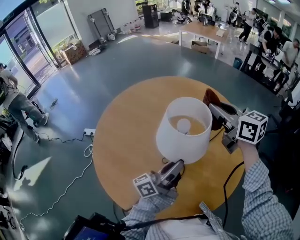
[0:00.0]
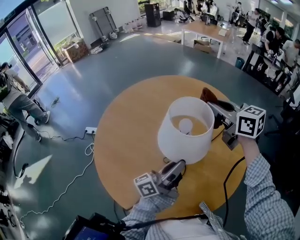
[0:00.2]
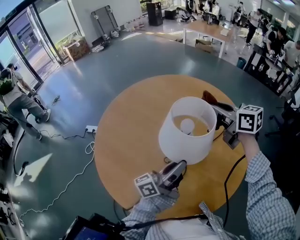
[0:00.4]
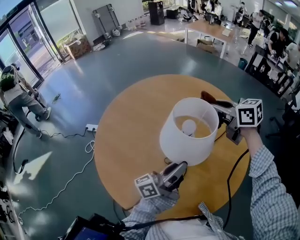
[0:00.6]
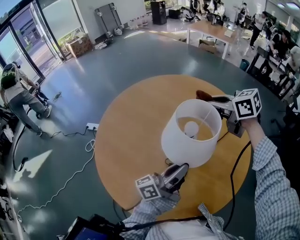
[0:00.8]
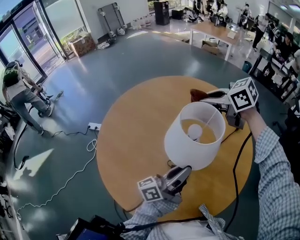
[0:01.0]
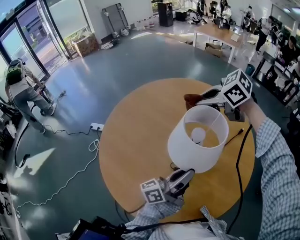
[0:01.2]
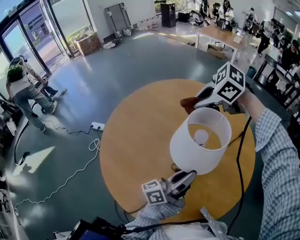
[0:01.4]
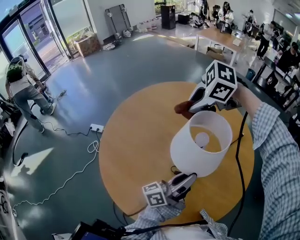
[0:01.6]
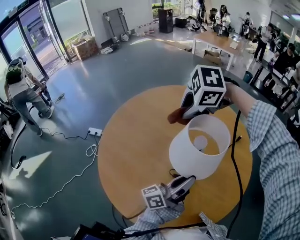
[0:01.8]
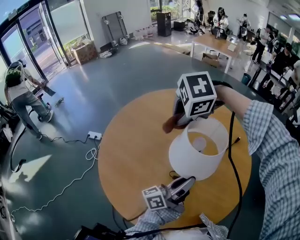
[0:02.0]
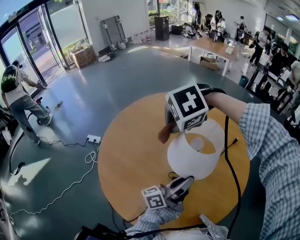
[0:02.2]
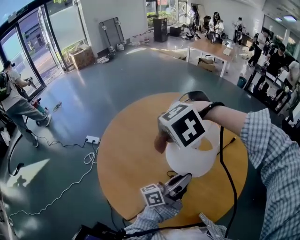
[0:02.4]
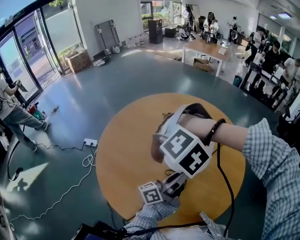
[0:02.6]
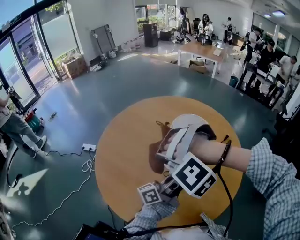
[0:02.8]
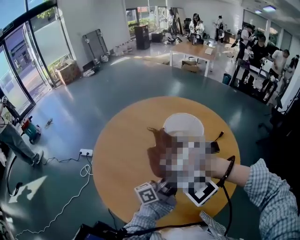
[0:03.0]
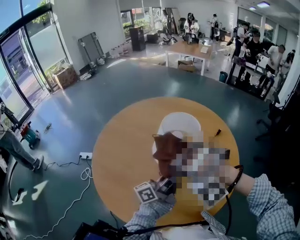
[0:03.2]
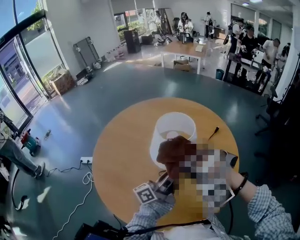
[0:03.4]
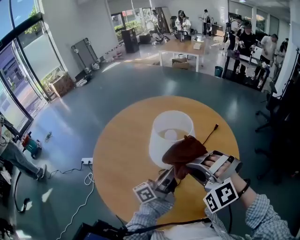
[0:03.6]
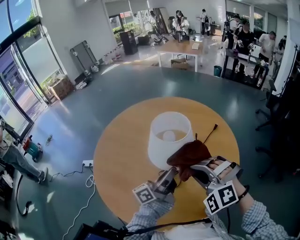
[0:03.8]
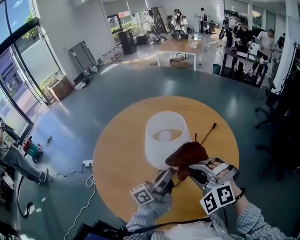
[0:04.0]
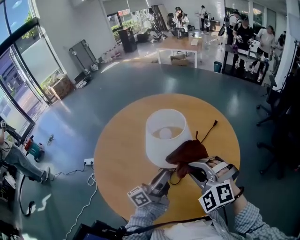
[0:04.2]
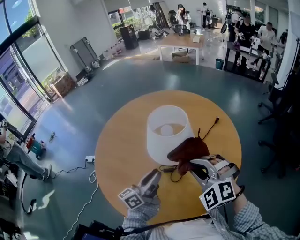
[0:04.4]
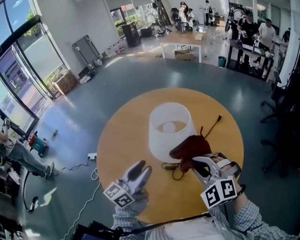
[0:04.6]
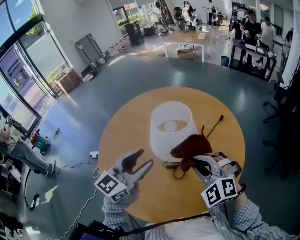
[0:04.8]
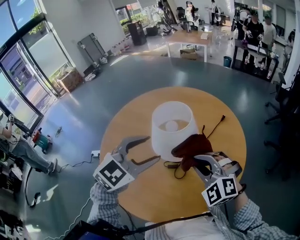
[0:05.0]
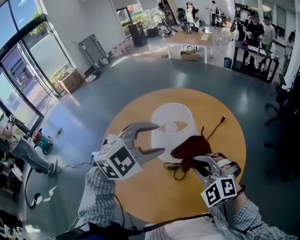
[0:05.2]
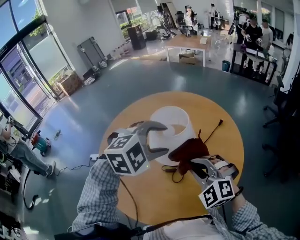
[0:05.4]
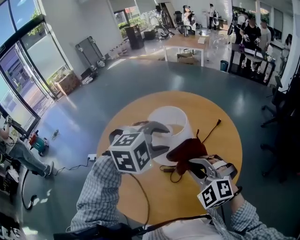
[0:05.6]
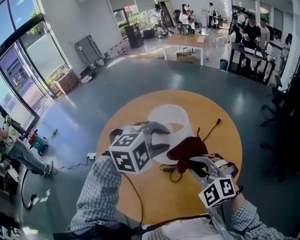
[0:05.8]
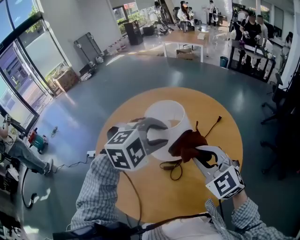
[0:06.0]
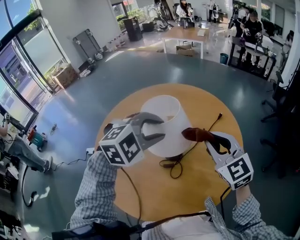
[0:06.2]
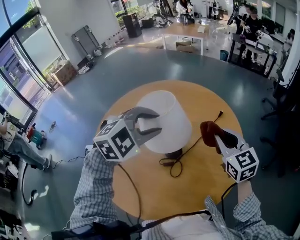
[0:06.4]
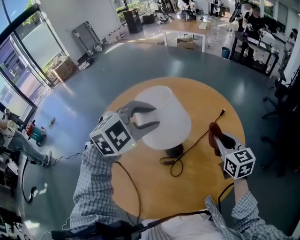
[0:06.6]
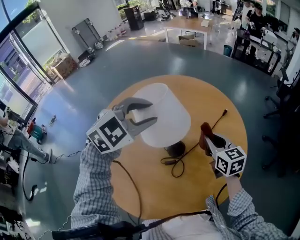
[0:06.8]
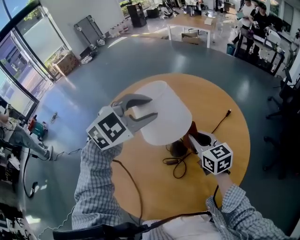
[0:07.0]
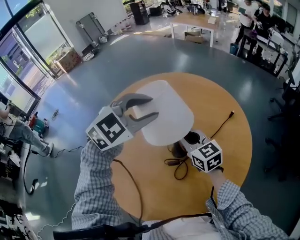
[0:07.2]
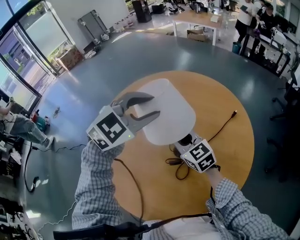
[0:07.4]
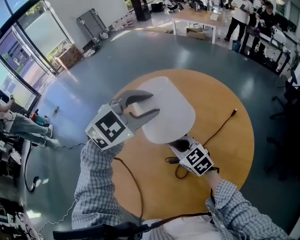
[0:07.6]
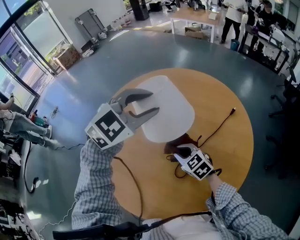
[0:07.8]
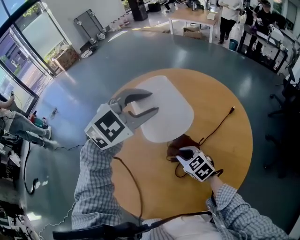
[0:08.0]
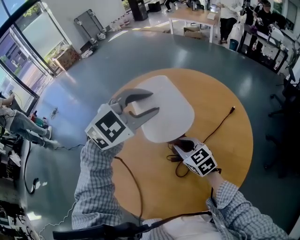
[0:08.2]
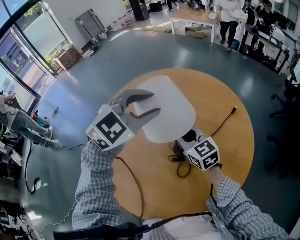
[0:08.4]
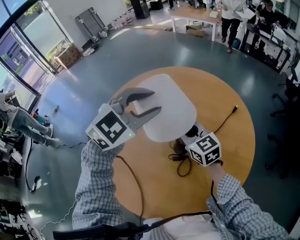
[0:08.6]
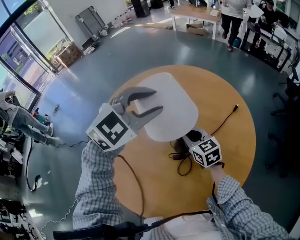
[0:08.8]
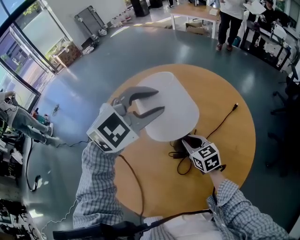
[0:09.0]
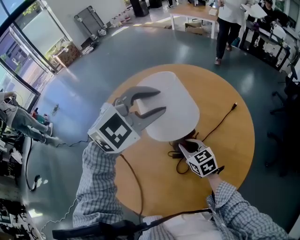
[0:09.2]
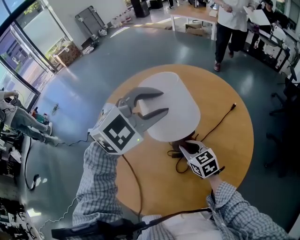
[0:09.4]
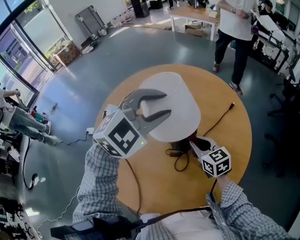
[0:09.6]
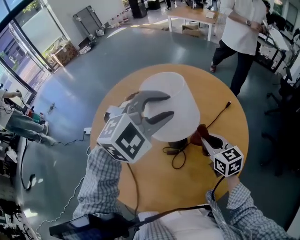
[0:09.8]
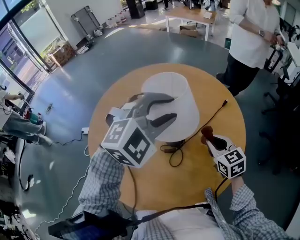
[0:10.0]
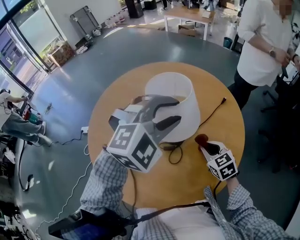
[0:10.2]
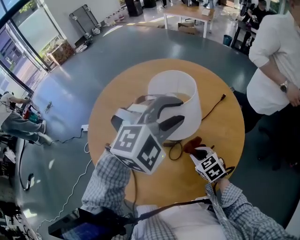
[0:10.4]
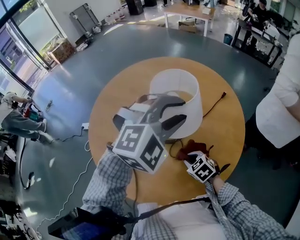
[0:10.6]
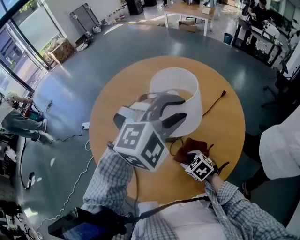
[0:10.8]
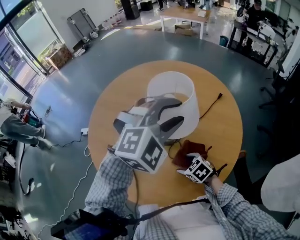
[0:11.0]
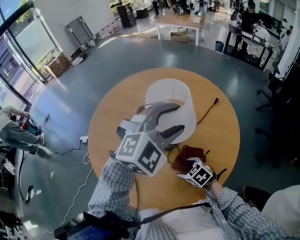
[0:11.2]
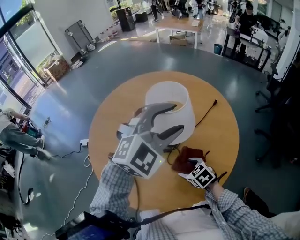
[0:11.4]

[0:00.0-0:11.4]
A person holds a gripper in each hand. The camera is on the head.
0:00.0 to 0:01.4: The right gripper changes place by roughly 15 cm, and angles its fingers downward, by about 40 degrees.
0:01.4 to 0:02.8: The right gripper moves approximately 20 cm, and rotates around the line of its fingers by roughly 80 degrees, counterclockwise from behind.
0:02.8 to 0:04.2: The right gripper moves to the right, some 15 cm, and rolls clockwise, seen from behind, by approximately 60 degrees.
0:04.2 to 0:05.6: The left gripper travels upward and forward by approximately 15 cm, tilts its fingers some 70 degrees downward, and opens up.
0:05.6 to 0:07.2: The right gripper goes some 15 cm forward, to the left and downward, and rolls clockwise, seen from behind, by some 60 degrees; the left gripper heads forward and to the left, covering about 10 cm, and changes its angle by about 30 degrees.
0:07.2 to 0:08.6: The right gripper moves roughly 10 cm downward and comes back.
0:08.6 to 0:10.0: The left gripper shifts some 10 cm to the right and backward. Meanwhile the right gripper moves to the right and backward, approximately 20 cm.
0:10.0 to 0:11.4: The right gripper is displaced downward, backward and to the left by about 20 cm, swivels some 30 degrees, and opens, while the left gripper is displaced backward by approximately 5 cm.

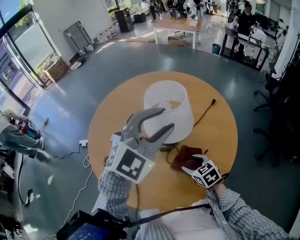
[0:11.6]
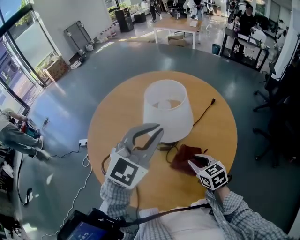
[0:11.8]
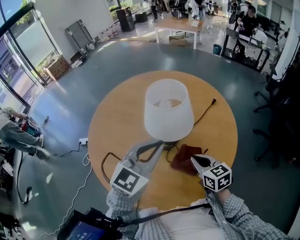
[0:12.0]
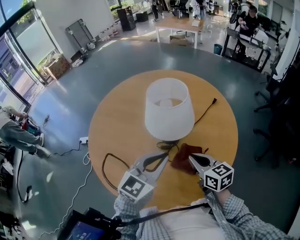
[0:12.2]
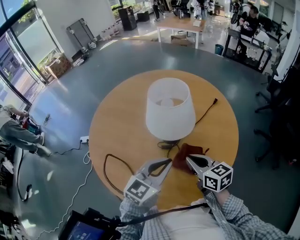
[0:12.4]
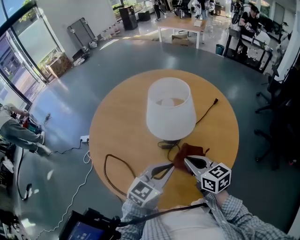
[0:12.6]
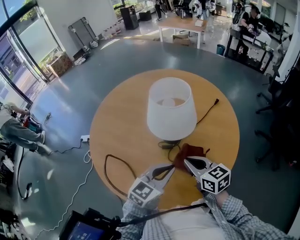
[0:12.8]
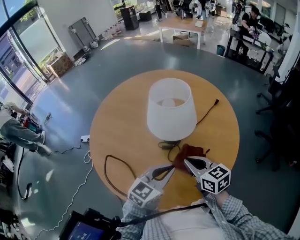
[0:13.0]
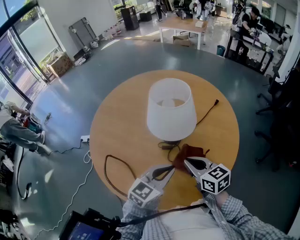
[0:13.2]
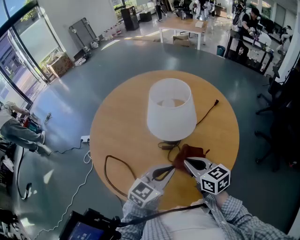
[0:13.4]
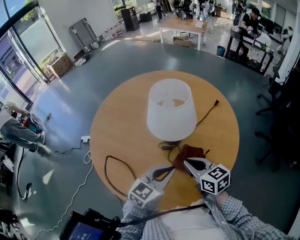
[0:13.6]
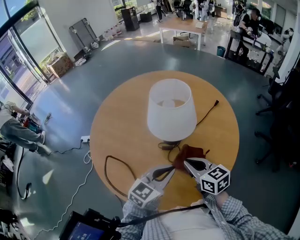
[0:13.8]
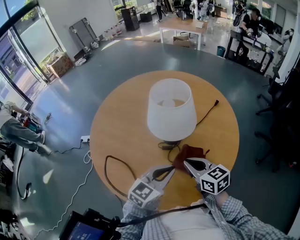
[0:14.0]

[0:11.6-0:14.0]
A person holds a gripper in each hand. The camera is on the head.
0:11.6 to 0:12.8: The left gripper shifts approximately 25 cm downward and backward, twists approximately 40 degrees counterclockwise, seen from behind, and closes up. The right gripper heads upward, covering about 10 cm, changes its angle by about 30 degrees, and closes its fingers.
0:12.8 to 0:14.0: Both grippers stay put.

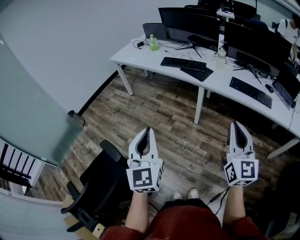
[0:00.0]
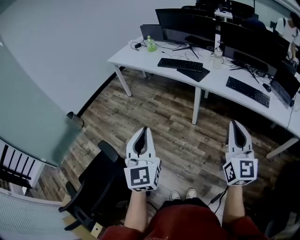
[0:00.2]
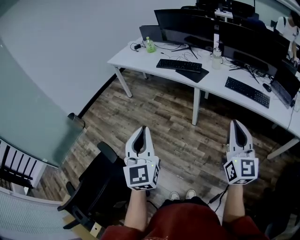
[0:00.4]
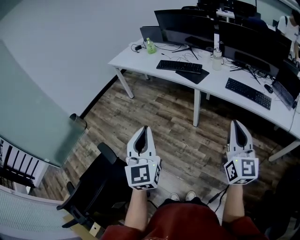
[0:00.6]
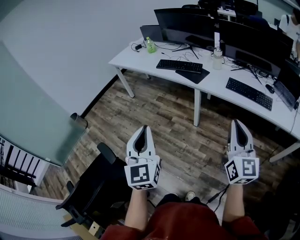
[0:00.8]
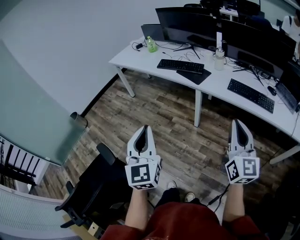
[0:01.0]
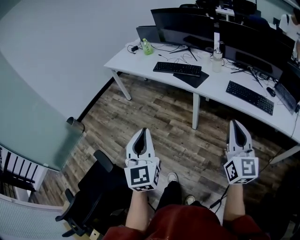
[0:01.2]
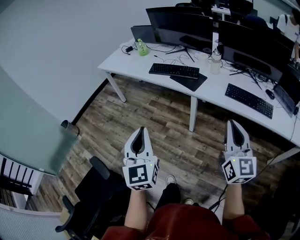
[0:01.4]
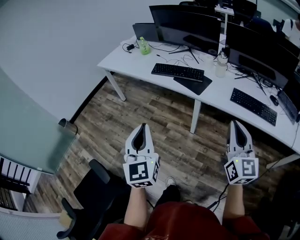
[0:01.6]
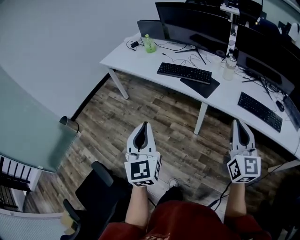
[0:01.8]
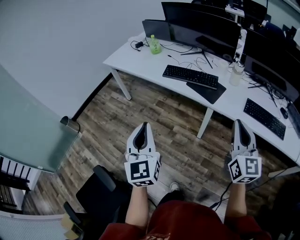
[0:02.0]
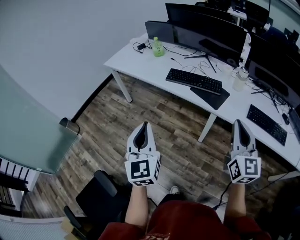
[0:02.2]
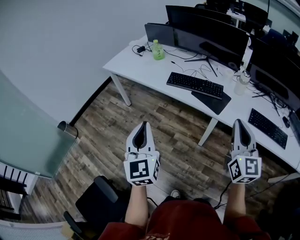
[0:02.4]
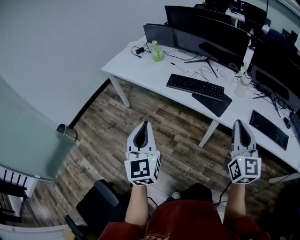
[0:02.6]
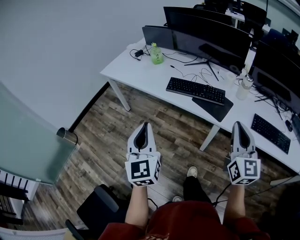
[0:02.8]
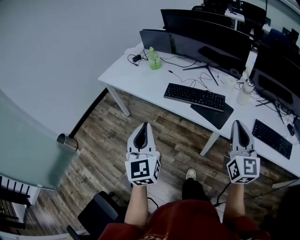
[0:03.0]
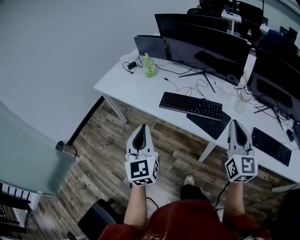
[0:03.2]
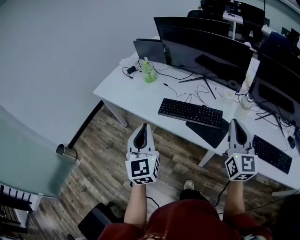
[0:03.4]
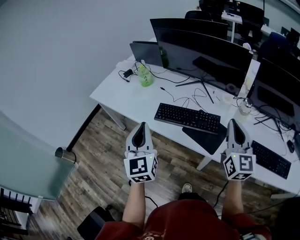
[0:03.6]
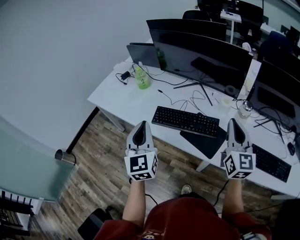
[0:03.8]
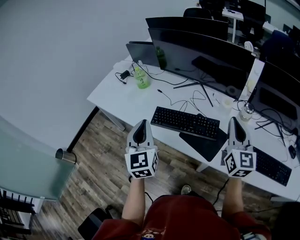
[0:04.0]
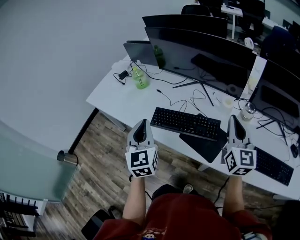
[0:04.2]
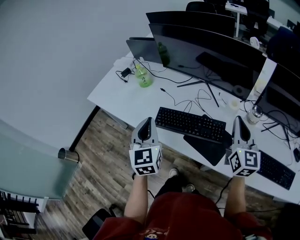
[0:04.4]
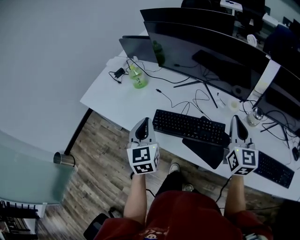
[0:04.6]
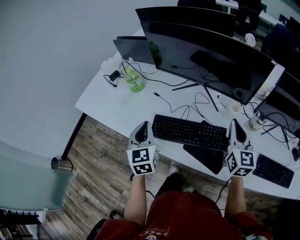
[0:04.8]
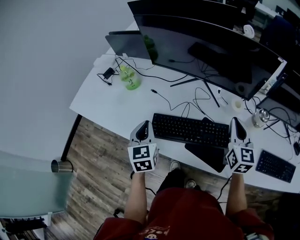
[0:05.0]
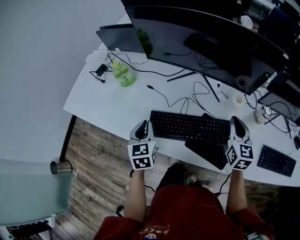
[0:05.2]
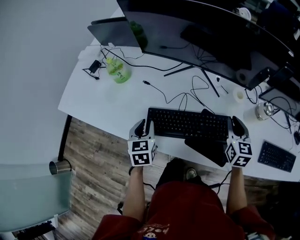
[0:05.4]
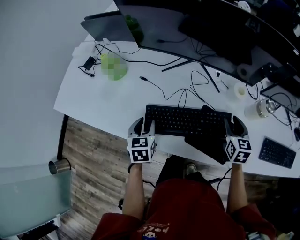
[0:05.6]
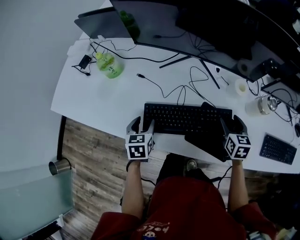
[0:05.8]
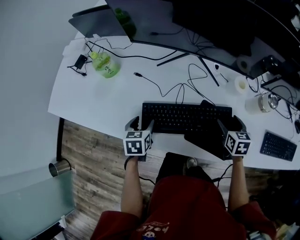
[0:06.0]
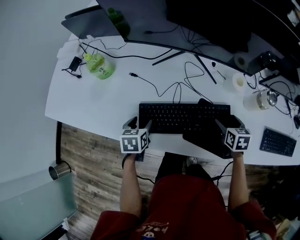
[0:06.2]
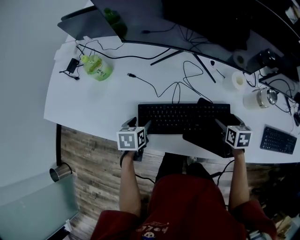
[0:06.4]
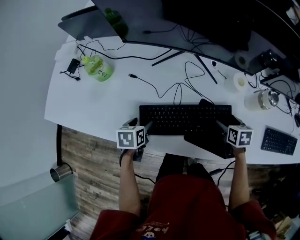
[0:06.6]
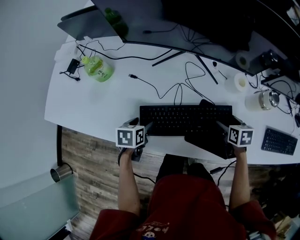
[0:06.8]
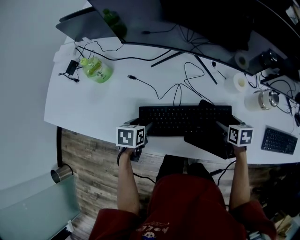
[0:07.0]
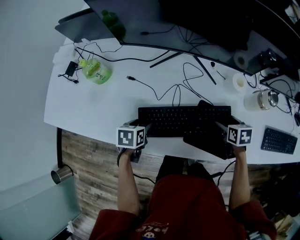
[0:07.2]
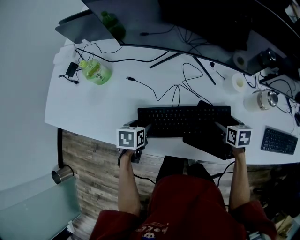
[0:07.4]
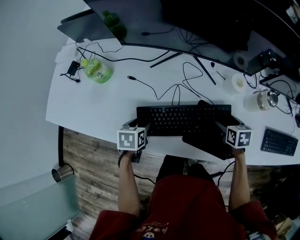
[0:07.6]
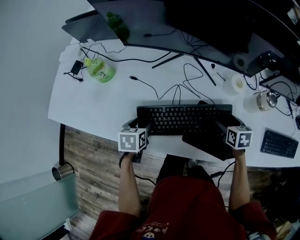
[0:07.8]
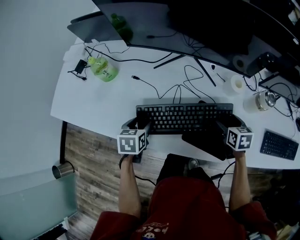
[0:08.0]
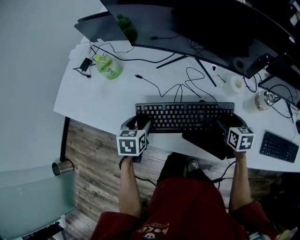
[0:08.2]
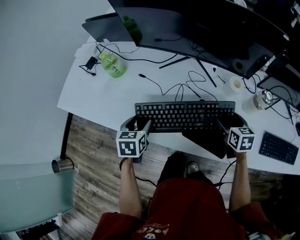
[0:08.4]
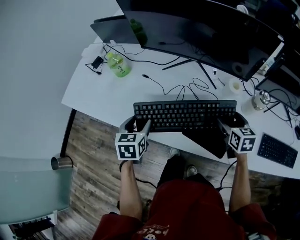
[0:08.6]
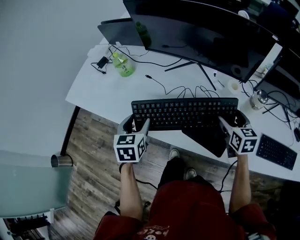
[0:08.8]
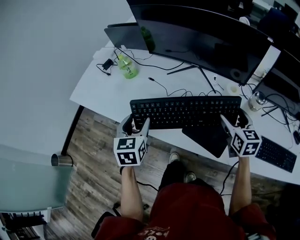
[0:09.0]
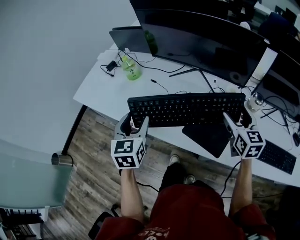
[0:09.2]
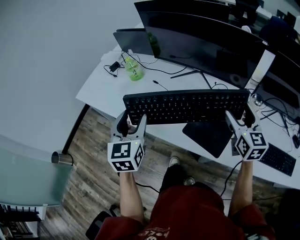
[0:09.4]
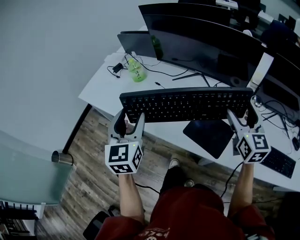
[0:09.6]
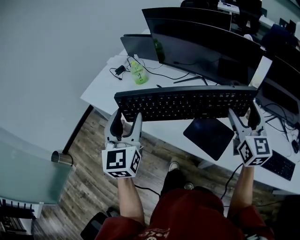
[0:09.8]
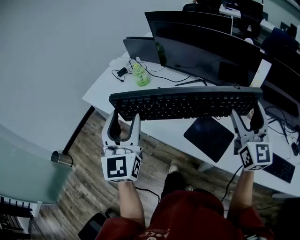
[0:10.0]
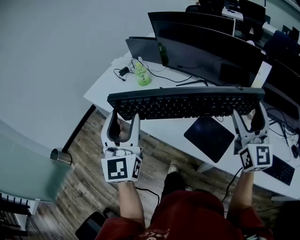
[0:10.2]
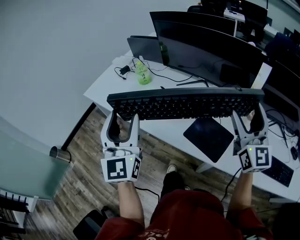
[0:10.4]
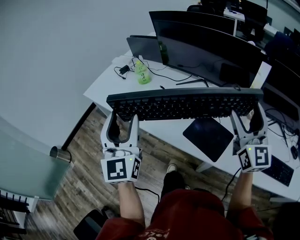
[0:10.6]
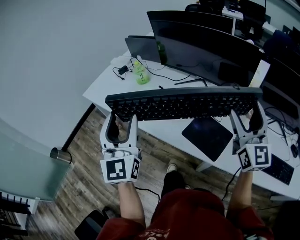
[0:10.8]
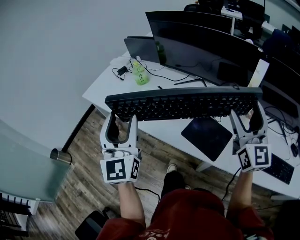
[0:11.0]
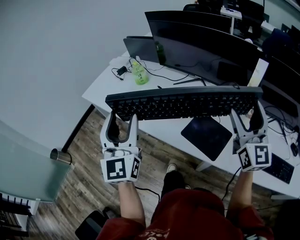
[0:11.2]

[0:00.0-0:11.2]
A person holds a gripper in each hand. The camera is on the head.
0:00.0 to 0:01.6: Both grippers move forward, about 20 cm.
0:01.6 to 0:03.2: The grippers both shift forward by roughly 35 cm.
0:03.2 to 0:04.8: Both grippers travel together forward, about 30 cm.
0:04.8 to 0:06.4: Both grippers move downward, approximately 25 cm. The left gripper tips its fingers downward by approximately 40 degrees, and opens, while the right gripper tips its fingers downward by roughly 50 degrees, and opens up.
0:06.4 to 0:08.0: There are only small adjustments of the grippers.
0:08.0 to 0:09.6: The right gripper travels upward by about 30 cm, and tilts its fingers some 40 degrees upward. The left gripper shifts some 35 cm upward and backward, and angles its fingers upward, by roughly 50 degrees.
0:09.6 to 0:11.2: The left gripper moves upward and backward, some 10 cm, and turns by some 20 degrees. Meanwhile the right gripper shifts about 10 cm upward.
